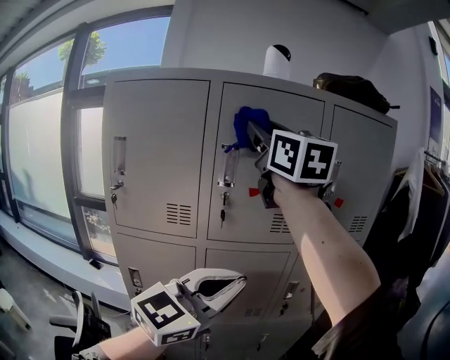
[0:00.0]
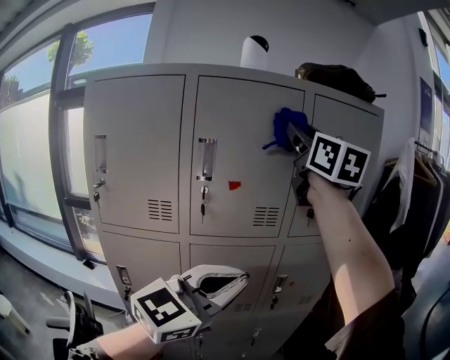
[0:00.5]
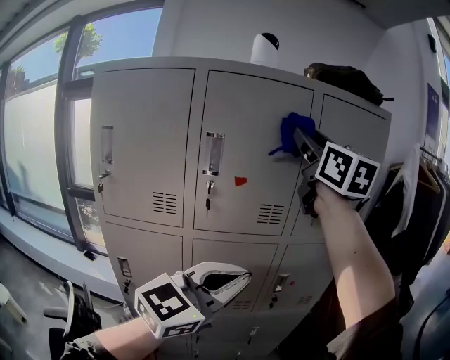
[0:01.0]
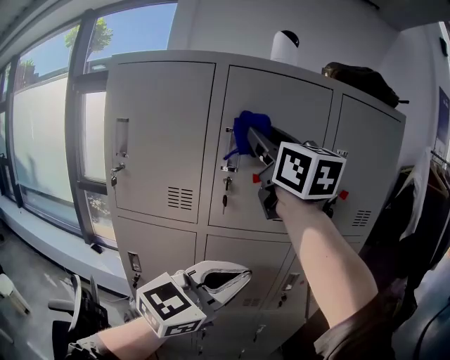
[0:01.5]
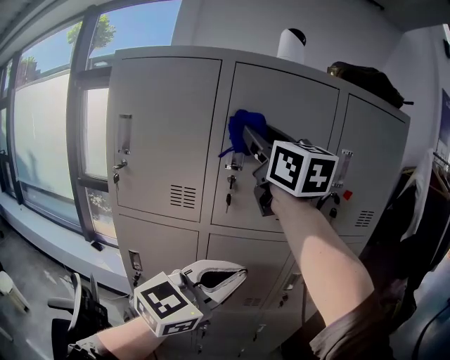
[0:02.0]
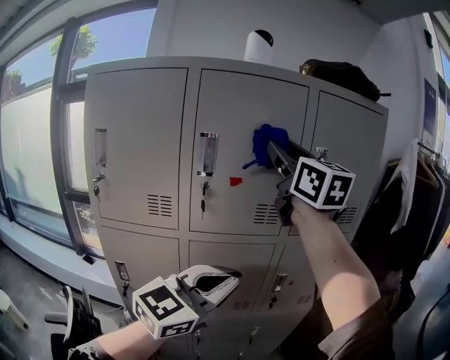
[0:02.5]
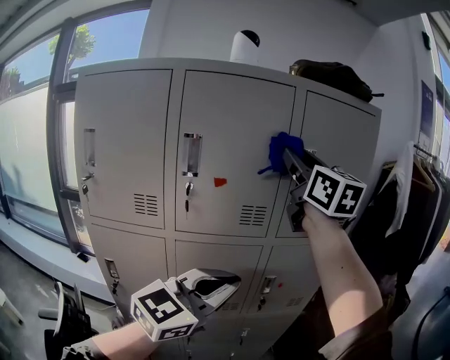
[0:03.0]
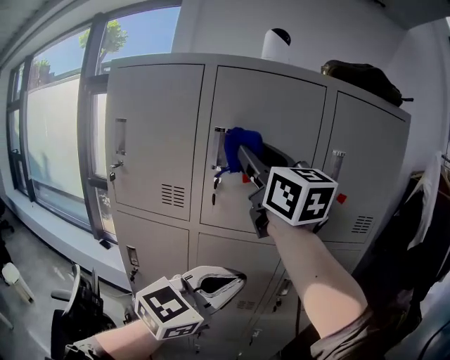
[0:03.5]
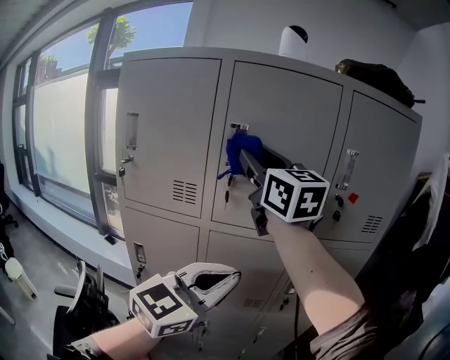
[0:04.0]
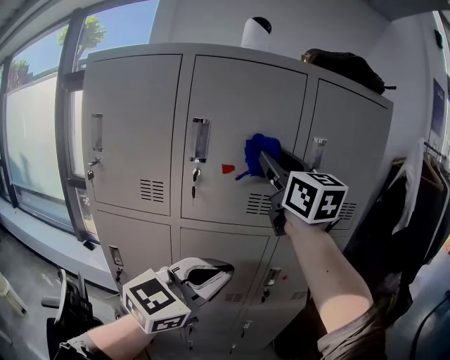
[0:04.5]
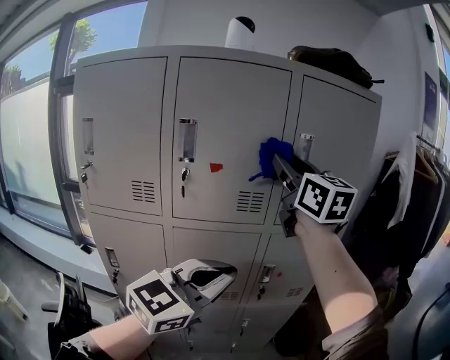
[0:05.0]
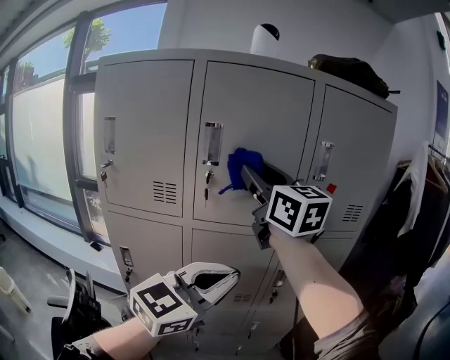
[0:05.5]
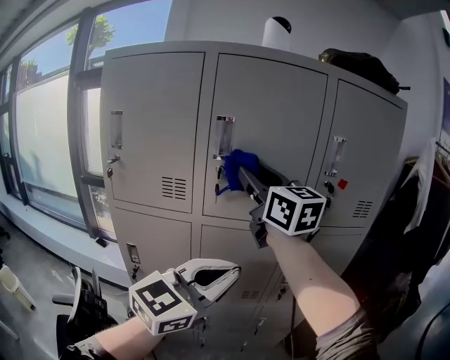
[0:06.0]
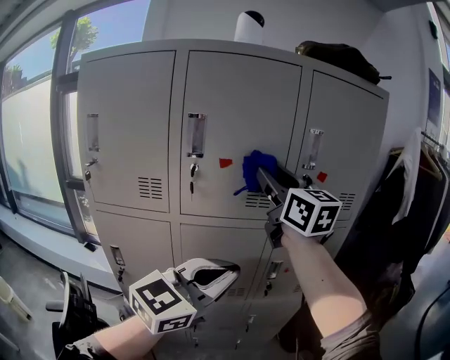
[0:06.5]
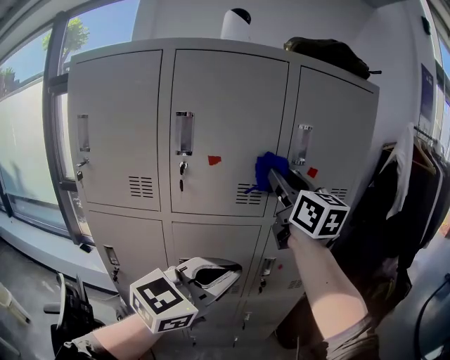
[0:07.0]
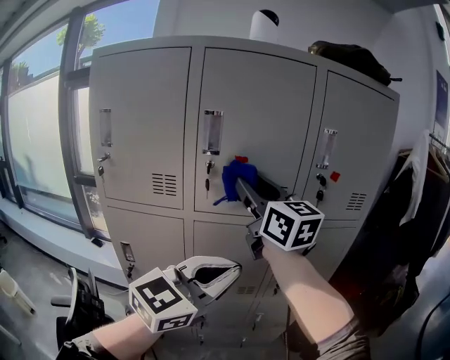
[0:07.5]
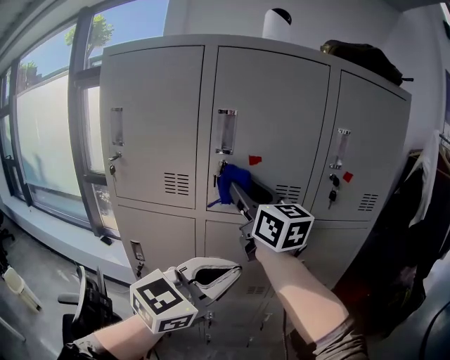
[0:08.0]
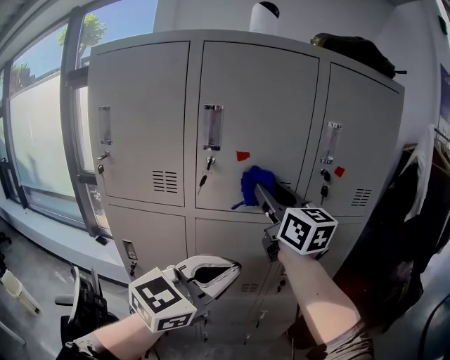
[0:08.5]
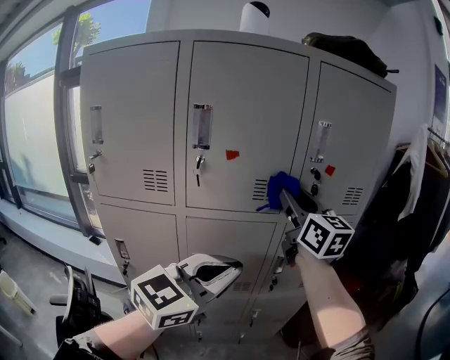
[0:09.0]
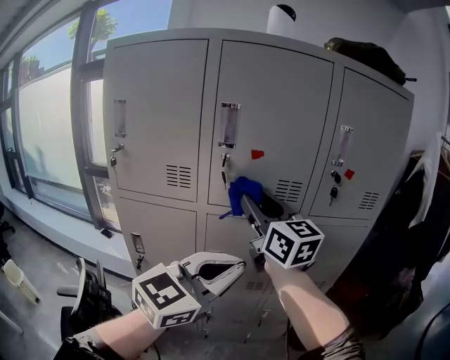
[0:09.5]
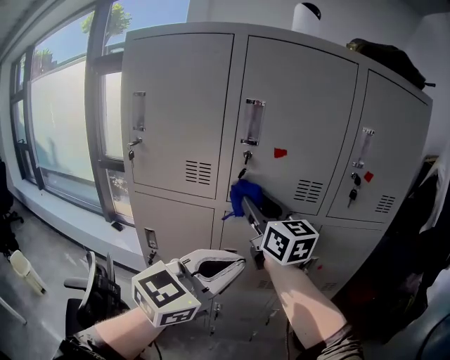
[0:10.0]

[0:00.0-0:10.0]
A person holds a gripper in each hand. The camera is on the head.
0:00.0 to 0:02.0: The right gripper goes about 5 cm downward, and goes to the right and returns, about 15 cm each way.
0:02.0 to 0:04.0: The right gripper is displaced downward by approximately 5 cm, and reaches roughly 20 cm to the right, then returns.
0:04.0 to 0:06.0: The right gripper moves downward, about 5 cm, and travels to the right and back again, some 20 cm each way.
0:06.0 to 0:08.0: The right gripper heads downward, covering some 5 cm, and travels to the right and back again, about 15 cm each way.
0:08.0 to 0:10.0: The right gripper heads downward, covering roughly 5 cm, and goes to the right and returns, some 15 cm each way.

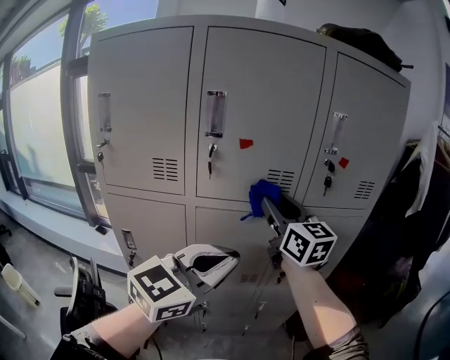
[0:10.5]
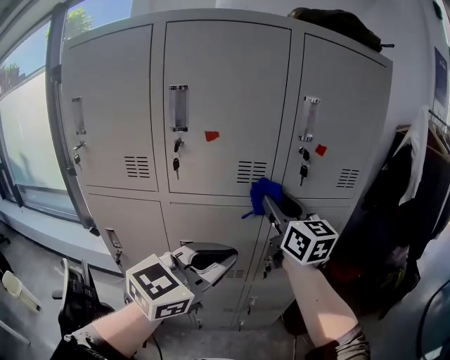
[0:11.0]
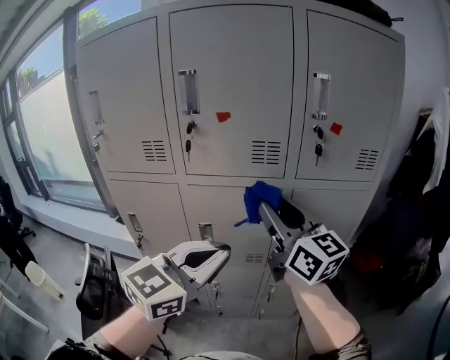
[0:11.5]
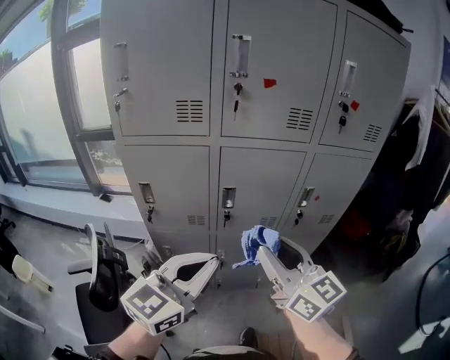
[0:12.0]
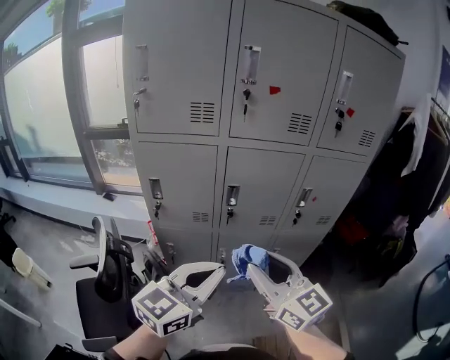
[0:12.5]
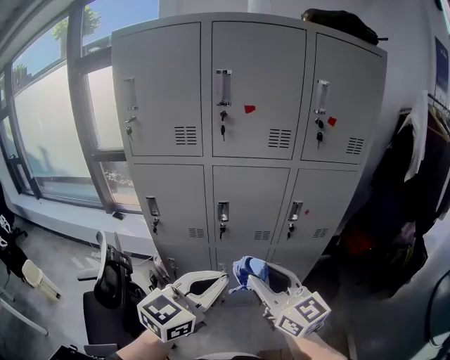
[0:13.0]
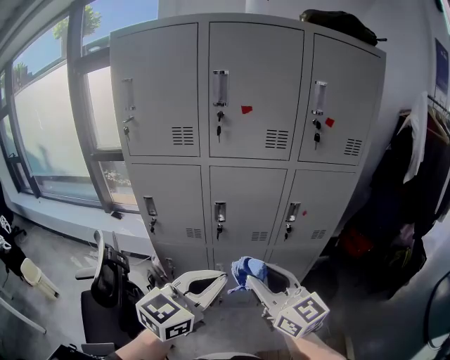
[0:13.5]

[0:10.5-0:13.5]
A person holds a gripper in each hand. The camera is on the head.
0:10.5 to 0:12.0: The right gripper travels backward and downward by roughly 30 cm, while the left gripper is displaced backward, downward and to the left by roughly 20 cm.
0:12.0 to 0:13.5: The left gripper shifts approximately 10 cm to the right; the right gripper travels backward by some 5 cm.

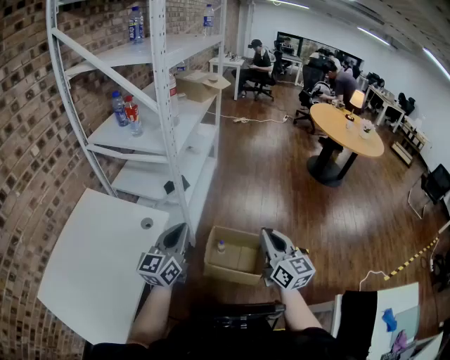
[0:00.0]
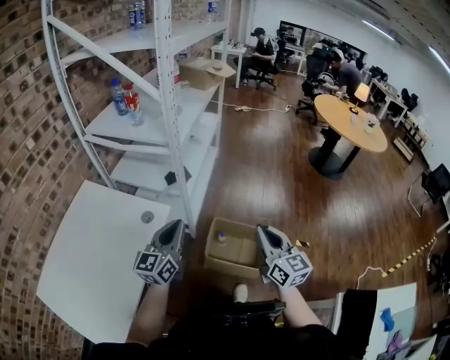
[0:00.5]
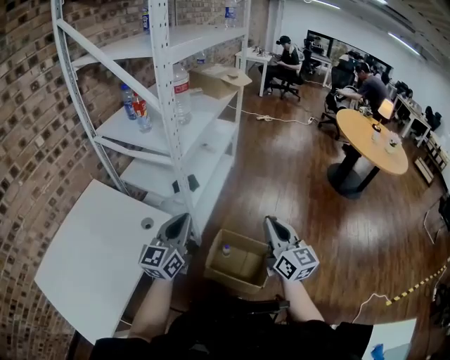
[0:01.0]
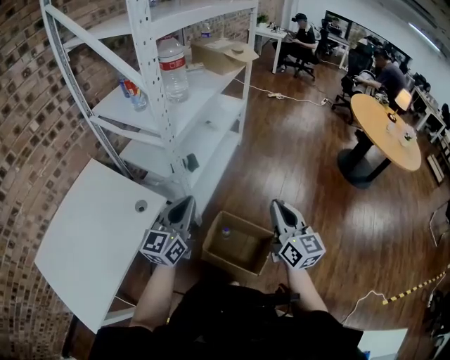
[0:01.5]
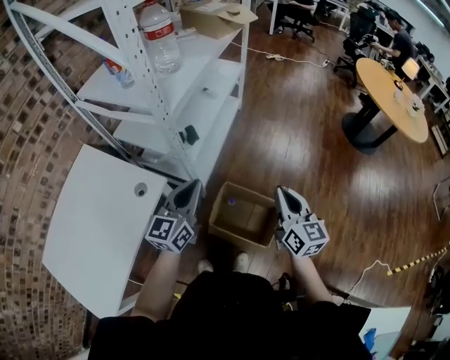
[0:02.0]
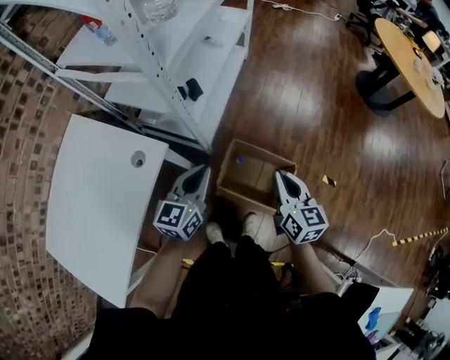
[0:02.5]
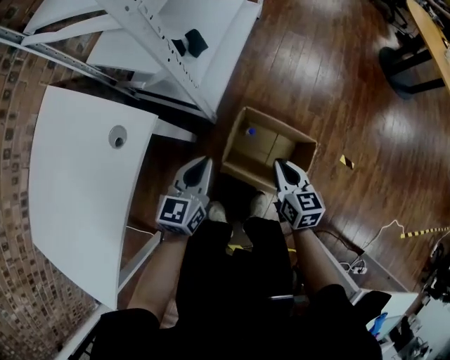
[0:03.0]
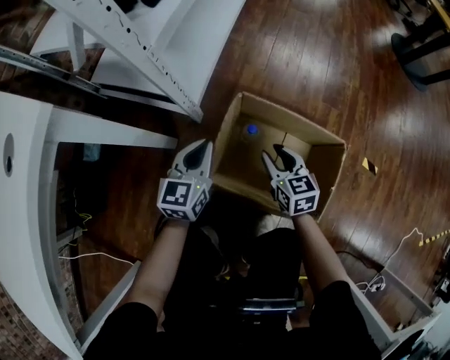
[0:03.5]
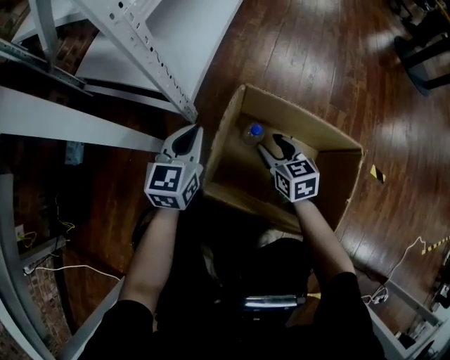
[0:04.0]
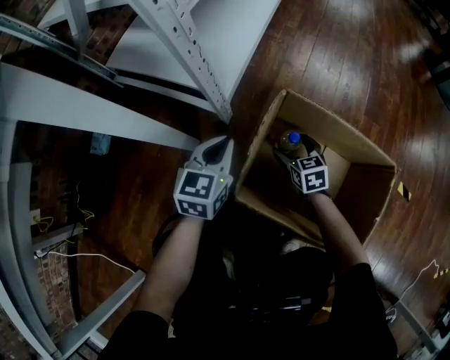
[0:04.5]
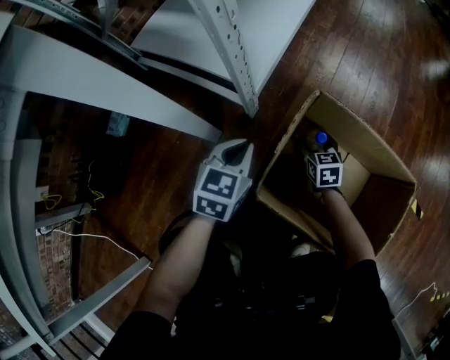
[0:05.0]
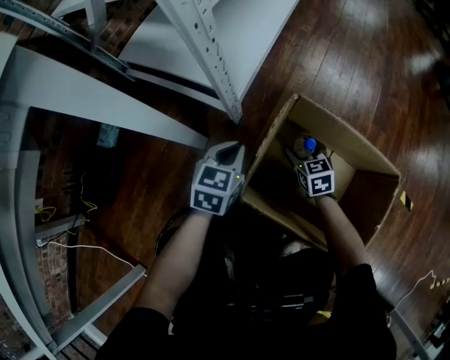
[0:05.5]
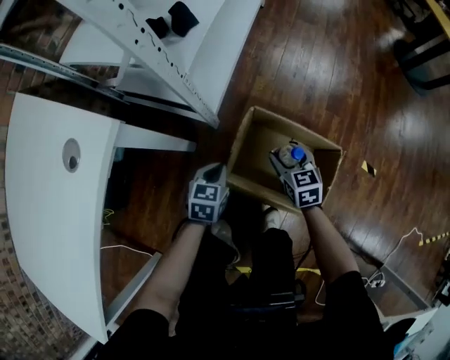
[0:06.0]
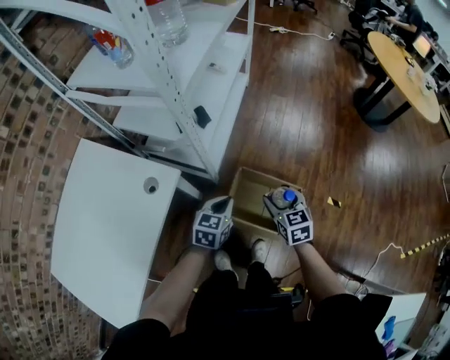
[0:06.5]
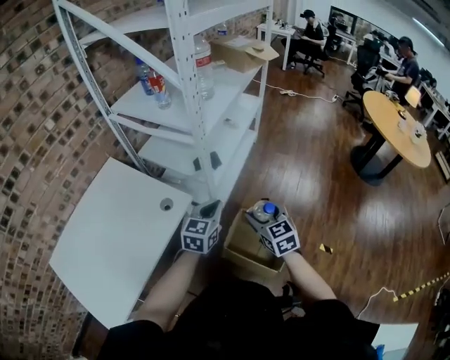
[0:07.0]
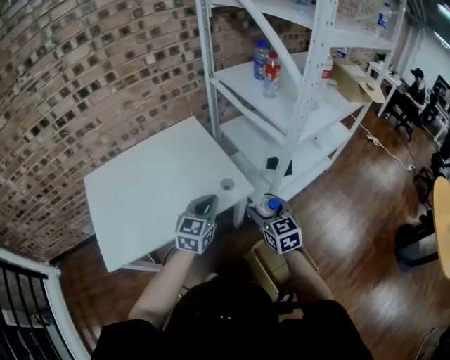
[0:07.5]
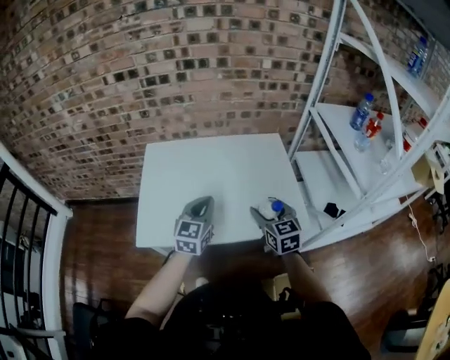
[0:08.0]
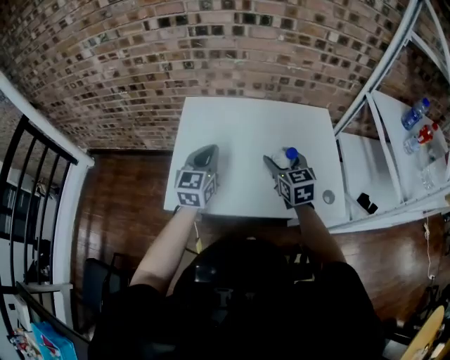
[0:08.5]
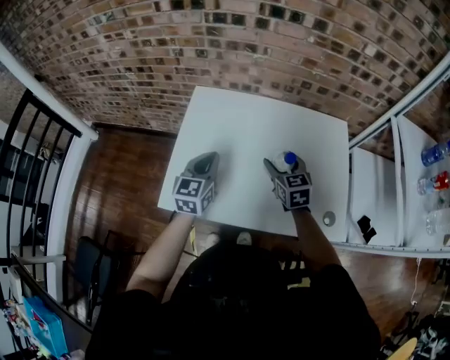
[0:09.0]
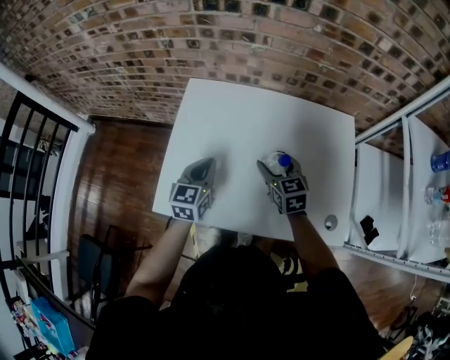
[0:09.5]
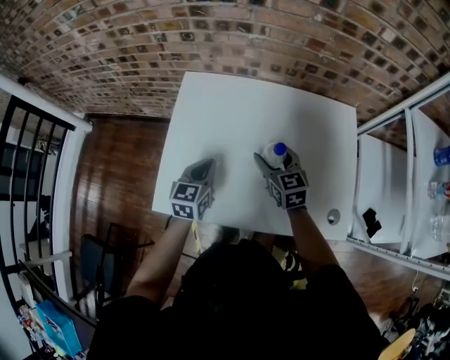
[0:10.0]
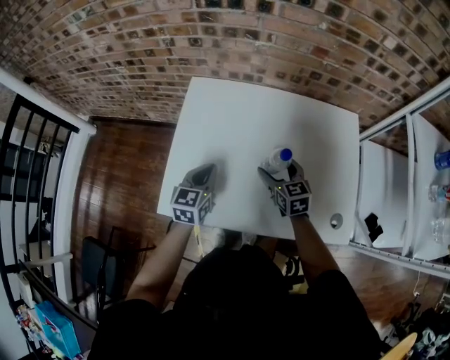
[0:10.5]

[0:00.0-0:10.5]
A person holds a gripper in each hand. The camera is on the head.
0:00.0 to 0:02.0: Both grippers travel together forward and to the right, some 20 cm.
0:02.0 to 0:04.0: Both grippers travel together downward, approximately 70 cm. The right gripper turns by roughly 30 degrees, and opens.
0:04.0 to 0:06.5: Both grippers move upward, about 50 cm.
0:06.5 to 0:08.5: The two grippers travel together, about 70 cm. The left gripper changes its angle by approximately 90 degrees; the right gripper changes its angle by roughly 80 degrees.
0:08.5 to 0:10.5: Both grippers move downward and forward, roughly 15 cm.

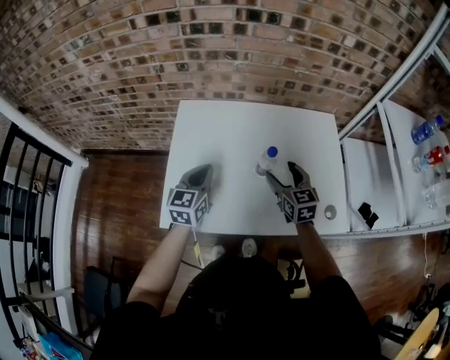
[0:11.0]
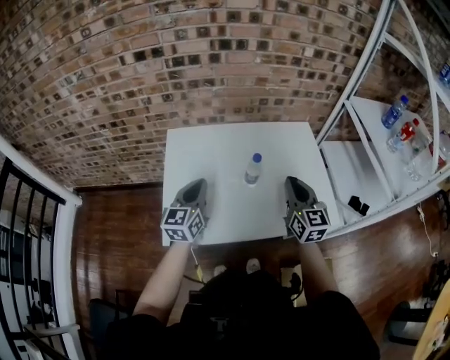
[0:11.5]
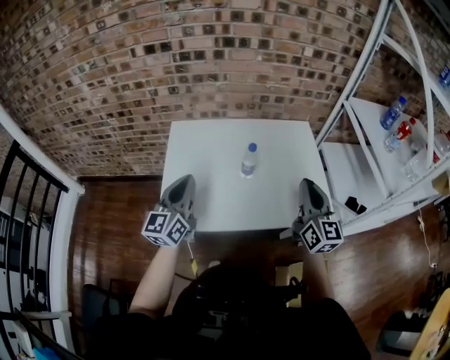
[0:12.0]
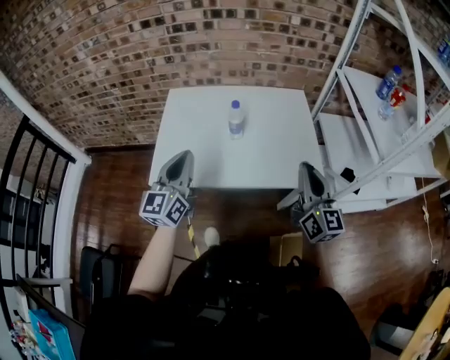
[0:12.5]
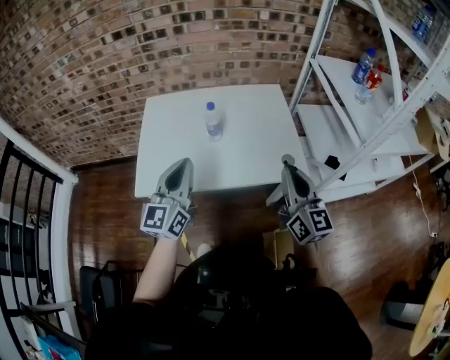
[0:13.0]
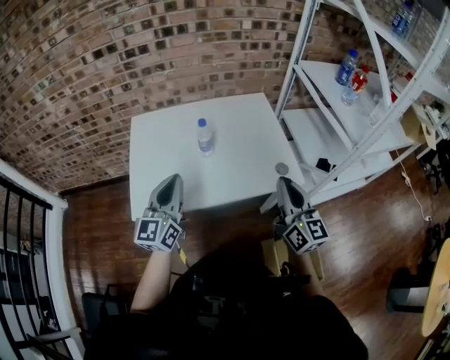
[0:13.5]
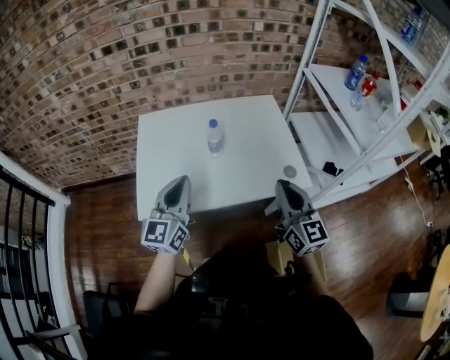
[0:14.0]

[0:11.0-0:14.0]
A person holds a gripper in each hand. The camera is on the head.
0:11.0 to 0:12.5: The right gripper goes approximately 35 cm backward, upward and to the right, tips its fingers upward by about 30 degrees, and closes; the left gripper goes about 25 cm backward and upward, and turns by some 20 degrees.
0:12.5 to 0:14.0: The right gripper is displaced to the left by some 5 cm.
